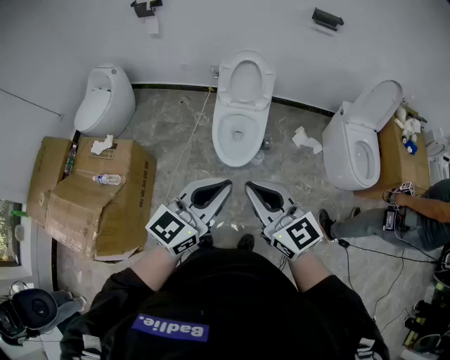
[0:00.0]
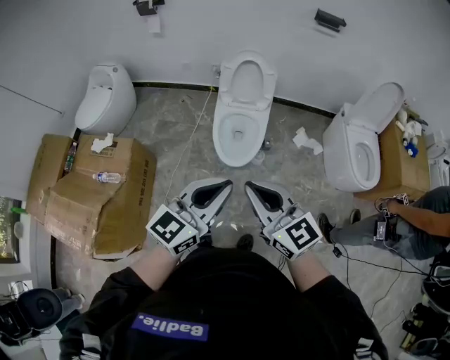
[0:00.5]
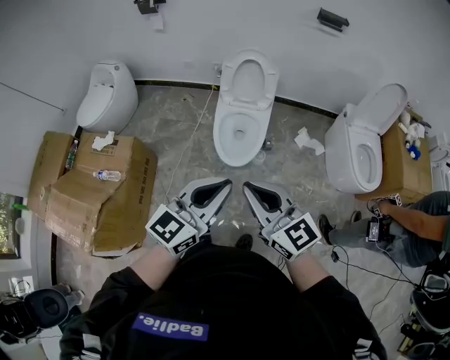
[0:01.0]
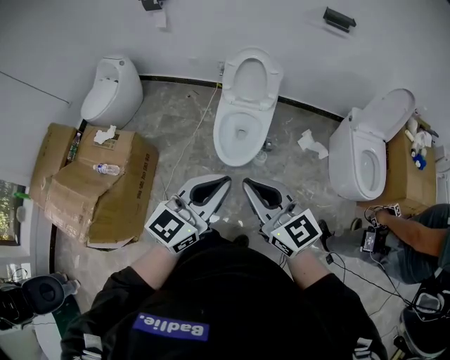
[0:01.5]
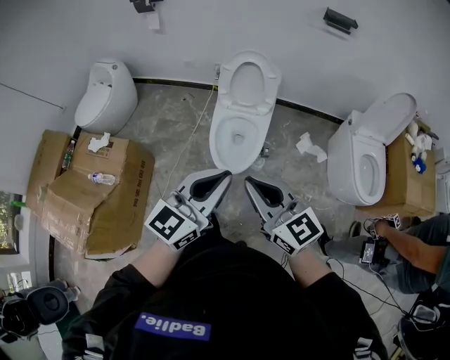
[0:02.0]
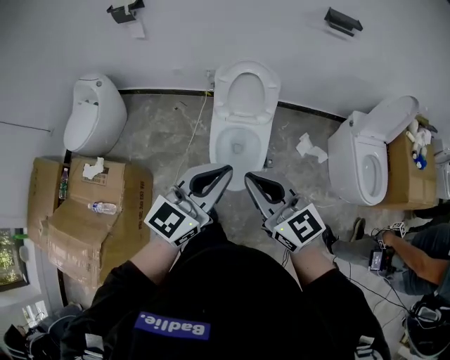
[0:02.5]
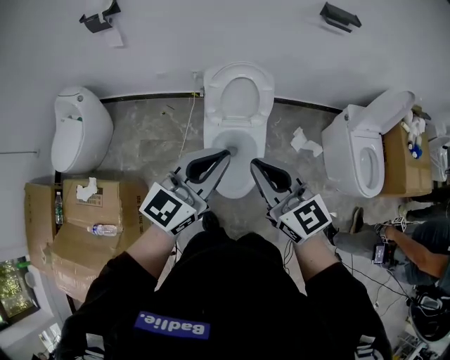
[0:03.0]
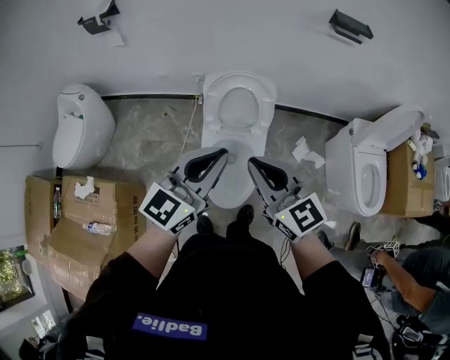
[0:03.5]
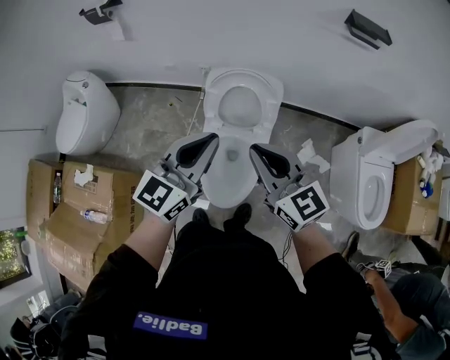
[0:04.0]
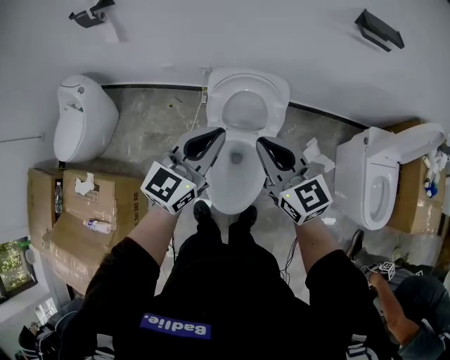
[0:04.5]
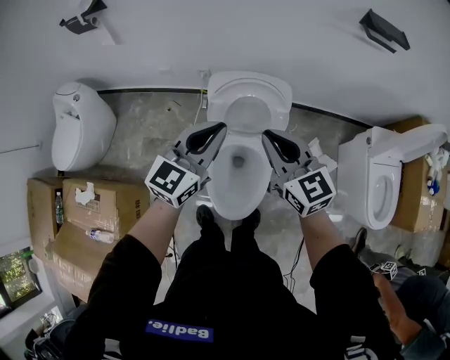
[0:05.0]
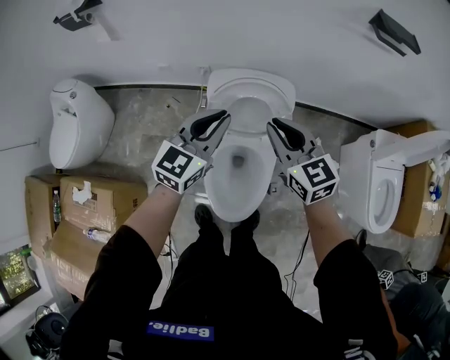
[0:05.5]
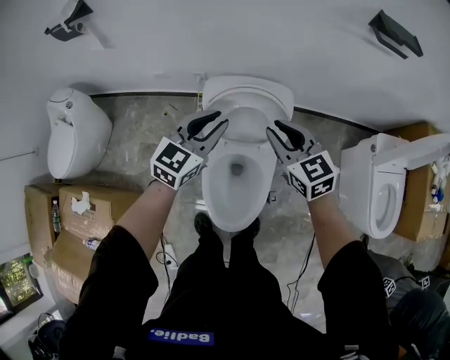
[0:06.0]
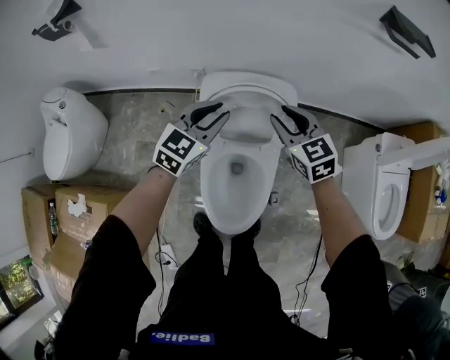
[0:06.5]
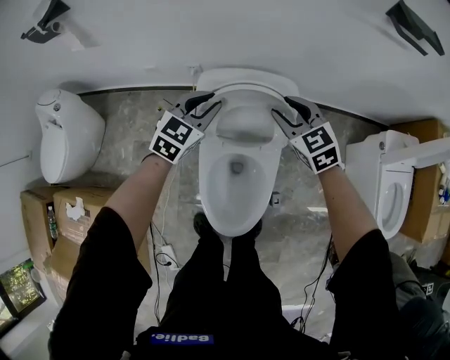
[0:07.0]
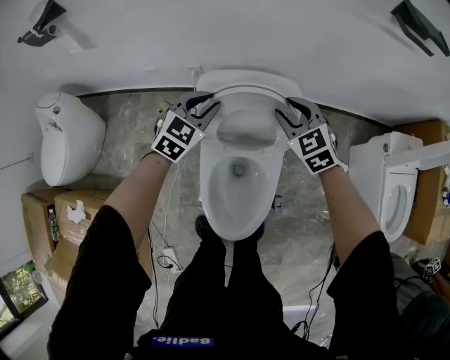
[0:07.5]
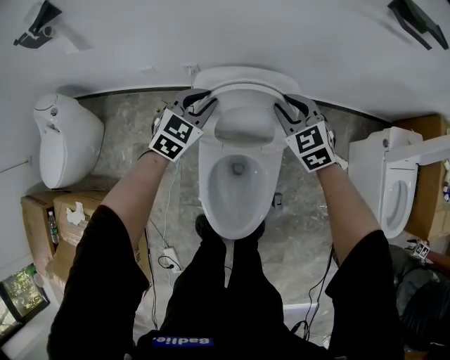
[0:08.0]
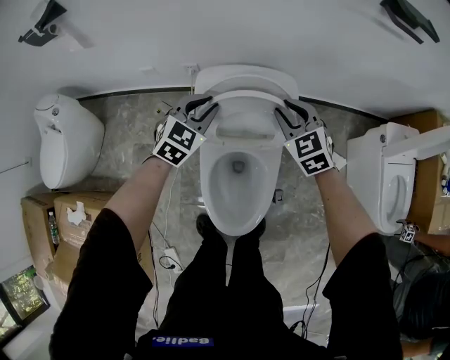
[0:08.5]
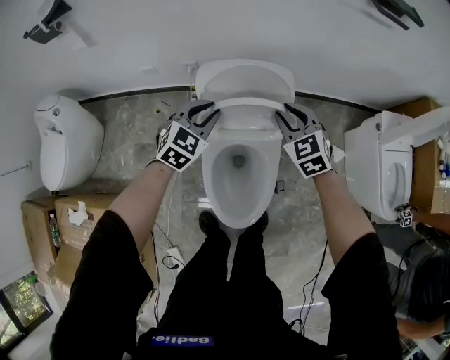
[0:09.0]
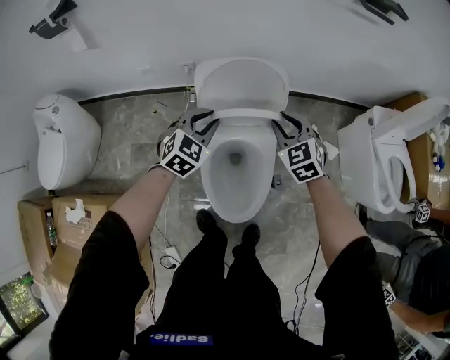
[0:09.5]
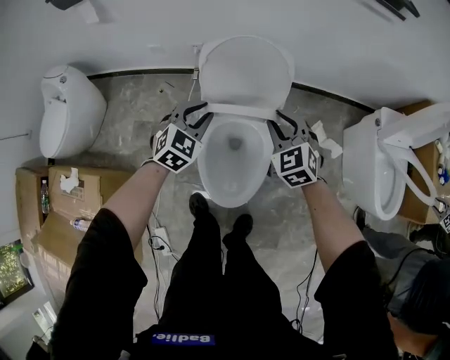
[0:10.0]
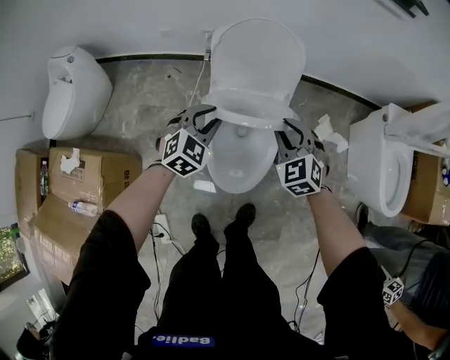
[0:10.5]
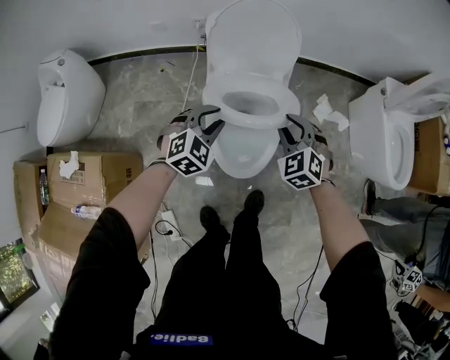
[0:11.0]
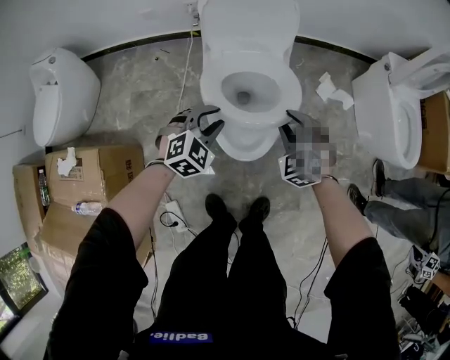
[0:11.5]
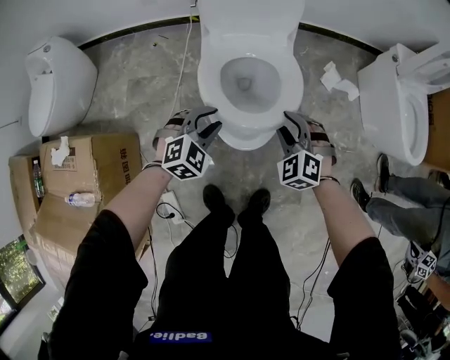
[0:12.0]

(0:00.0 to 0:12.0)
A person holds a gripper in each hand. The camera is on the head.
0:00.0 - 0:02.0: The two grippers go about 10 cm forward and to the right.
0:02.0 - 0:04.0: Both grippers travel together forward, approximately 40 cm.
0:04.0 - 0:06.0: Both grippers travel together forward and downward, some 25 cm.
0:06.0 - 0:08.0: The grippers both shift downward and forward by about 15 cm. The left gripper rotates about 20 degrees. Meanwhile the right gripper turns by roughly 20 degrees.
0:08.0 - 0:10.0: The two grippers go about 20 cm backward.
0:10.0 - 0:12.0: The grippers both shift backward and downward by approximately 30 cm. The left gripper changes its angle by about 20 degrees, while the right gripper changes its angle by roughly 20 degrees.

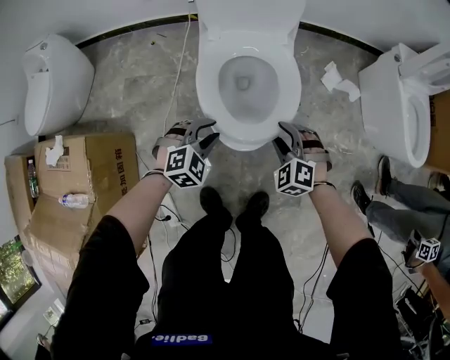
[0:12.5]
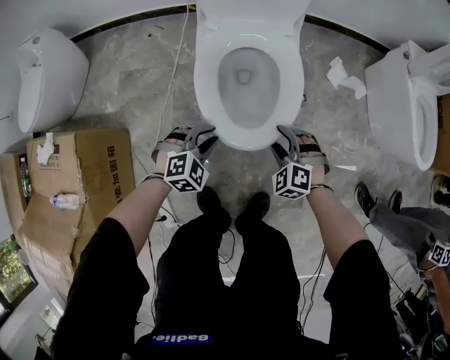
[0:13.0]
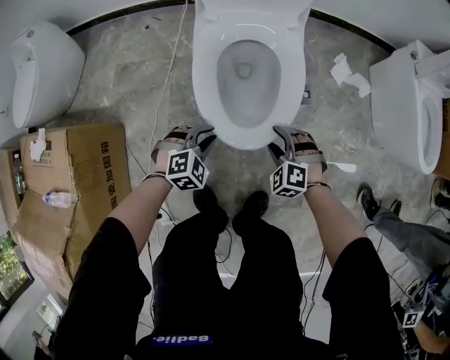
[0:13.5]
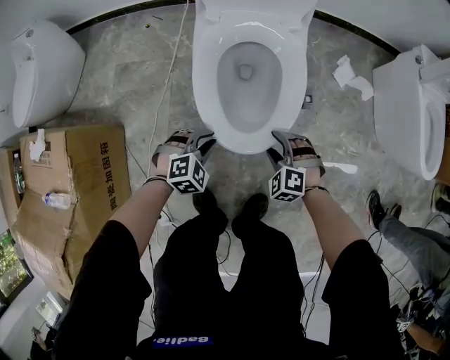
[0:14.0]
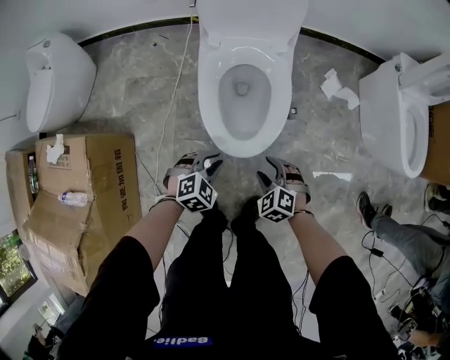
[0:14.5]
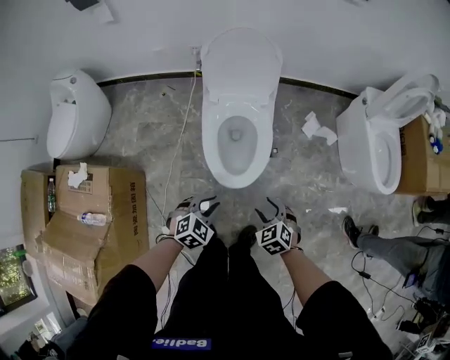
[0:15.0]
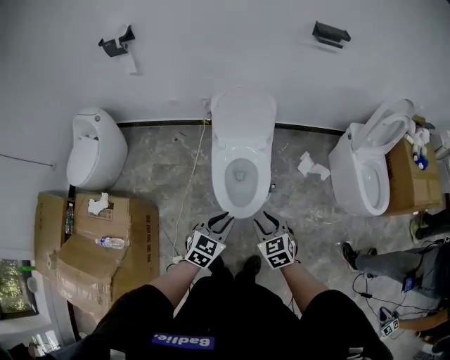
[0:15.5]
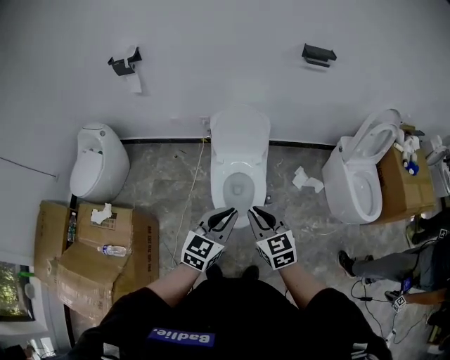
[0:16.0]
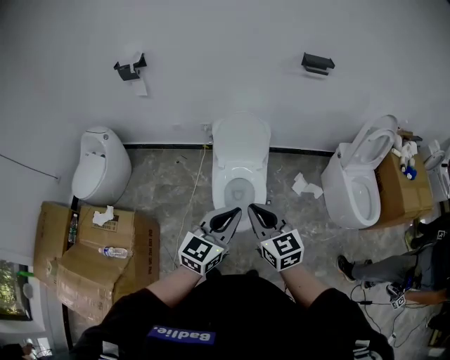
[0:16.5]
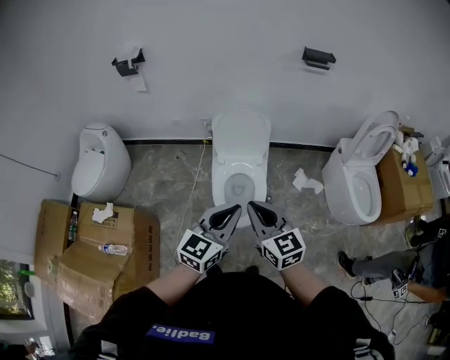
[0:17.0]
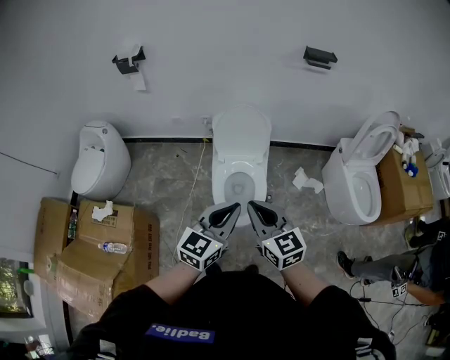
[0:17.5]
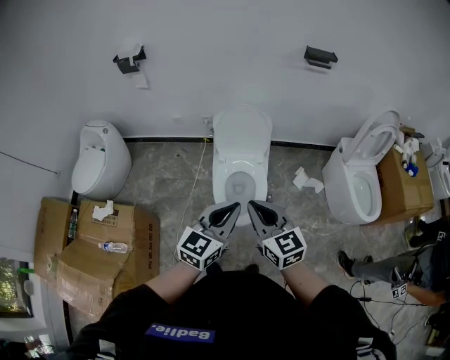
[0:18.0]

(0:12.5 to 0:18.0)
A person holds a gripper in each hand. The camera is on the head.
0:12.5 - 0:14.5: Both grippers move backward, roughly 10 cm. The right gripper reaches approximately 15 cm downward, then returns, while the left gripper moves approximately 15 cm downward and comes back.
0:14.5 - 0:16.0: The two grippers go roughly 50 cm upward. The left gripper tilts its fingers about 40 degrees upward. Meanwhile the right gripper tilts its fingers roughly 40 degrees upward, and closes up.
0:16.0 - 0:18.0: The two grippers go about 5 cm upward.

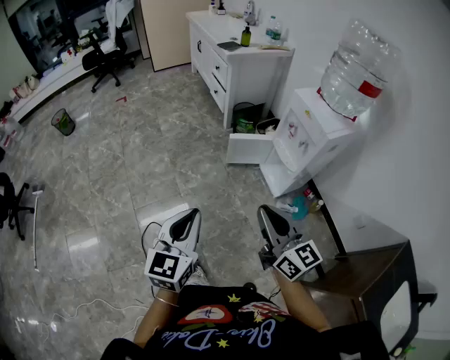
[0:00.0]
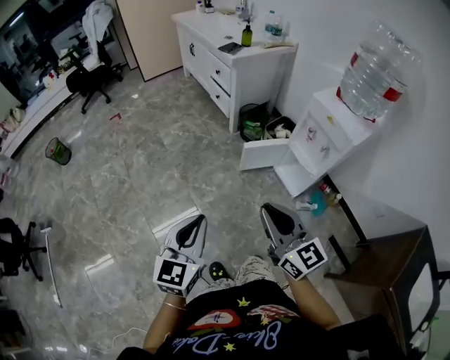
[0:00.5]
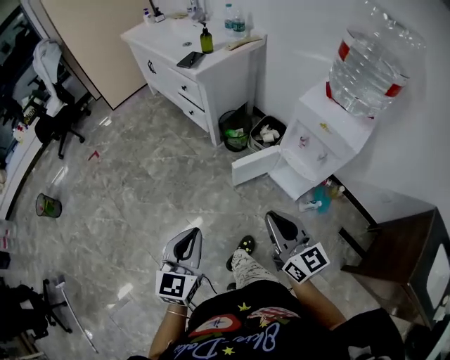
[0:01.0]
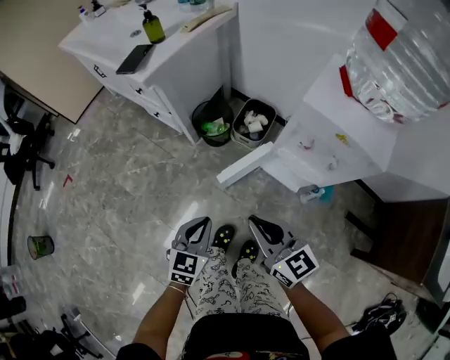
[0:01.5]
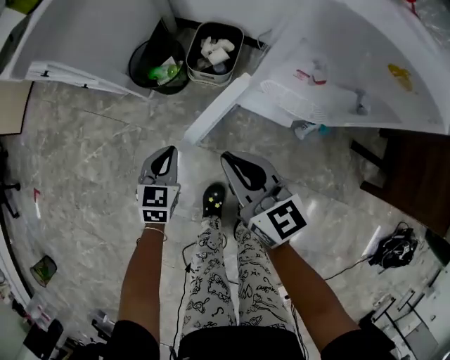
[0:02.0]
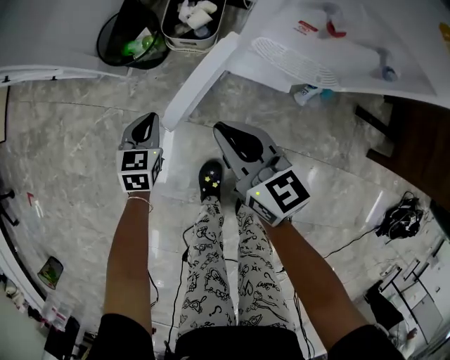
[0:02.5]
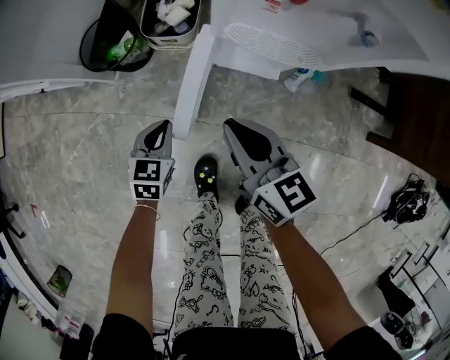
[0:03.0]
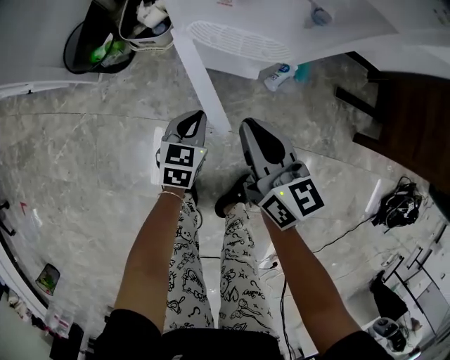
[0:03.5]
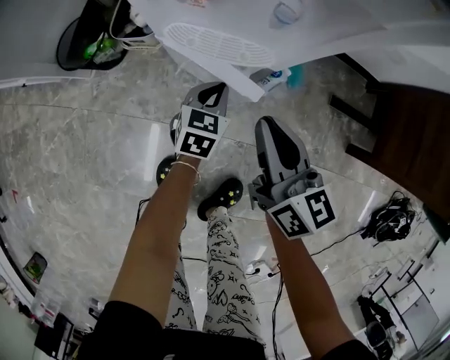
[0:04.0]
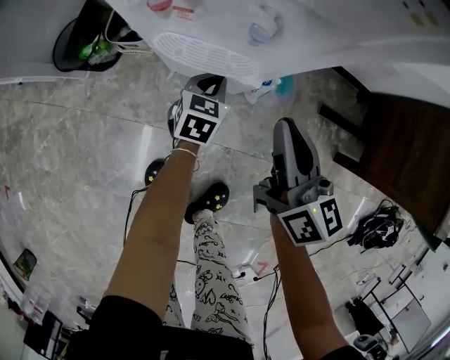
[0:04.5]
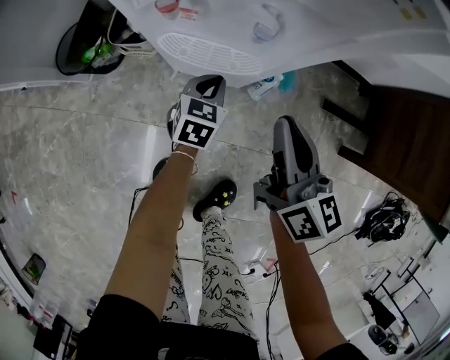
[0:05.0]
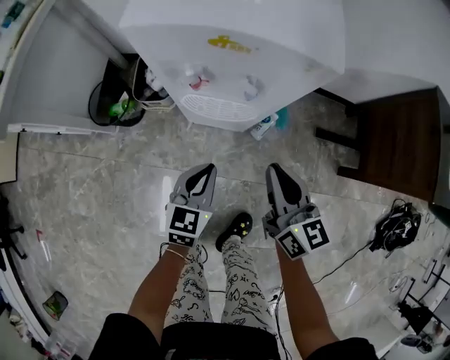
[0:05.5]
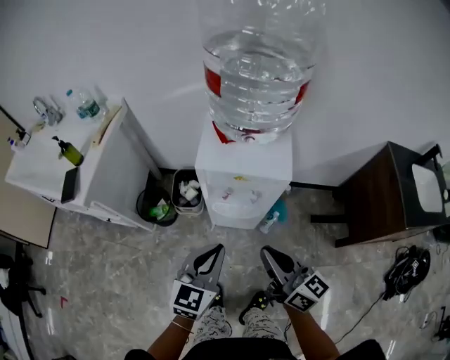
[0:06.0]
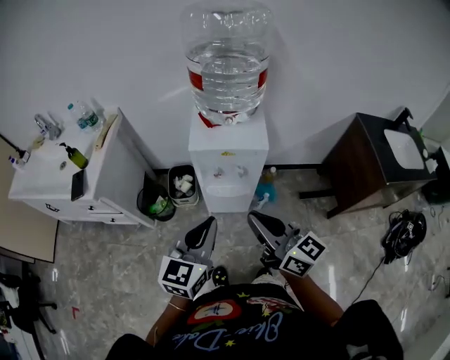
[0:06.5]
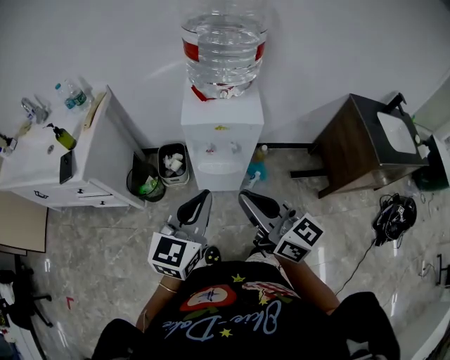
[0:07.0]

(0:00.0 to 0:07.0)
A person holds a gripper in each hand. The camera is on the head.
0:00.0 - 0:02.0: The pair of grippers is taken approximately 60 cm. The right gripper swivels some 40 degrees; the left gripper swivels about 50 degrees.
0:02.0 - 0:03.5: The right gripper shifts approximately 20 cm to the right and downward, and rotates roughly 20 degrees. Meanwhile the left gripper travels to the right by roughly 25 cm.
0:03.5 - 0:05.0: The left gripper shifts approximately 15 cm forward and to the right. Meanwhile the right gripper heads to the right, upward and forward, covering approximately 15 cm.
0:05.0 - 0:07.0: Both grippers travel together upward and backward, some 50 cm. The right gripper turns by approximately 20 degrees. Meanwhile the left gripper points its fingers about 30 degrees further upward.

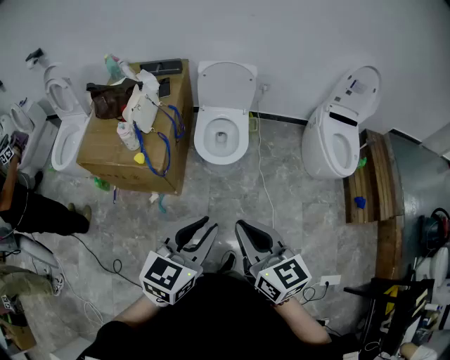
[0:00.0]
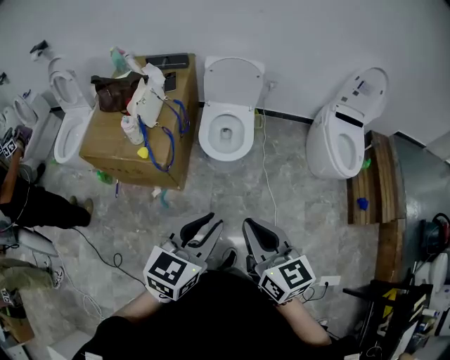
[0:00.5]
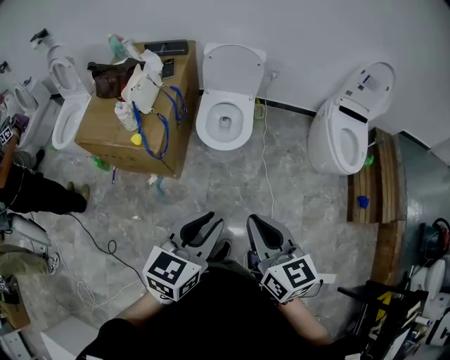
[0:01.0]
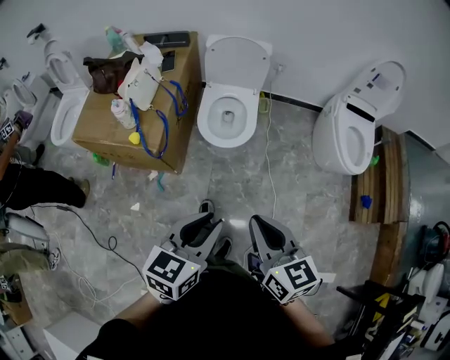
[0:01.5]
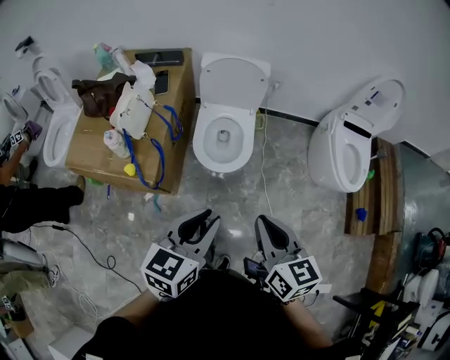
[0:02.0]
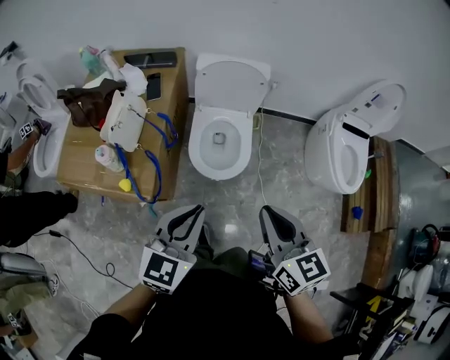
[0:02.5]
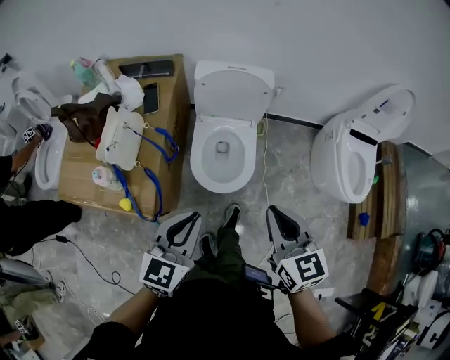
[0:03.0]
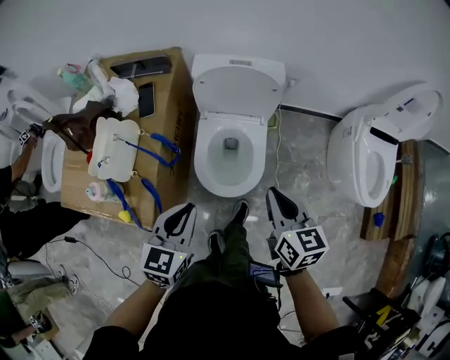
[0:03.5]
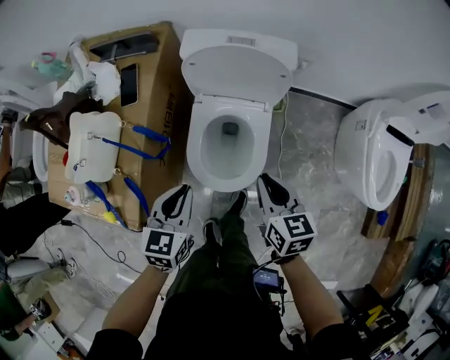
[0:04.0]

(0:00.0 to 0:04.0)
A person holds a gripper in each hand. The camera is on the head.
0:00.0 - 0:02.0: The two grippers go about 20 cm forward.
0:02.0 - 0:04.0: The grippers both shift forward and downward by some 40 cm. The left gripper swivels approximately 20 degrees.
